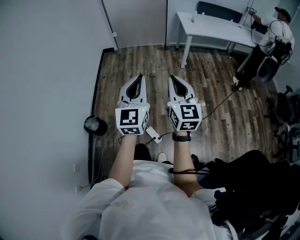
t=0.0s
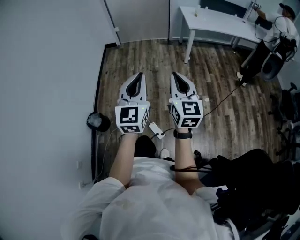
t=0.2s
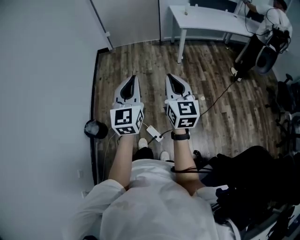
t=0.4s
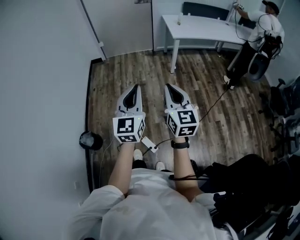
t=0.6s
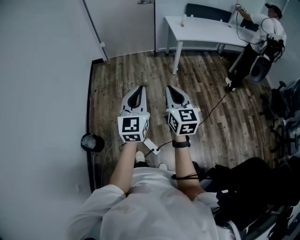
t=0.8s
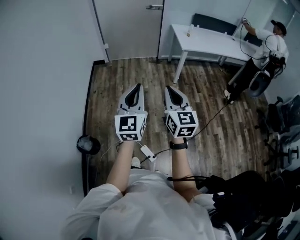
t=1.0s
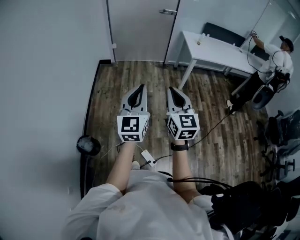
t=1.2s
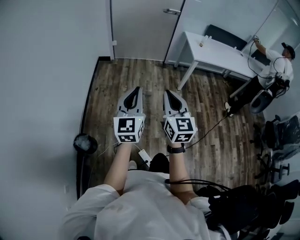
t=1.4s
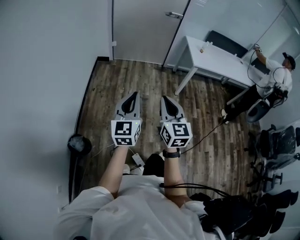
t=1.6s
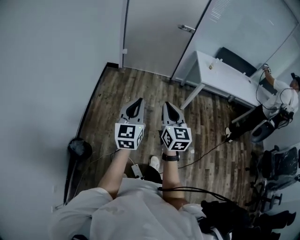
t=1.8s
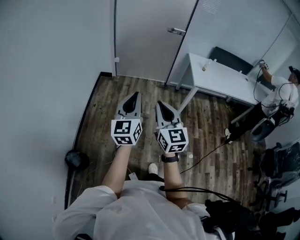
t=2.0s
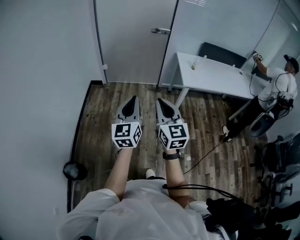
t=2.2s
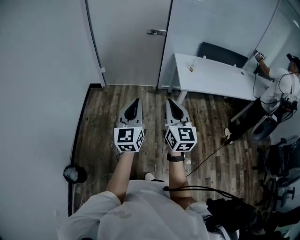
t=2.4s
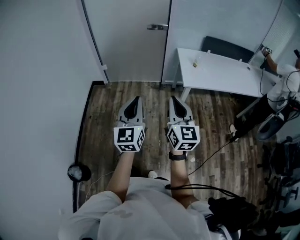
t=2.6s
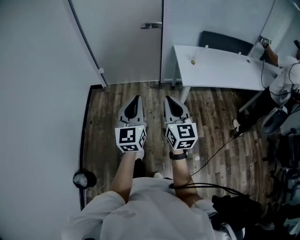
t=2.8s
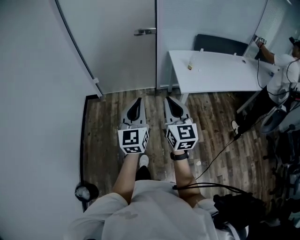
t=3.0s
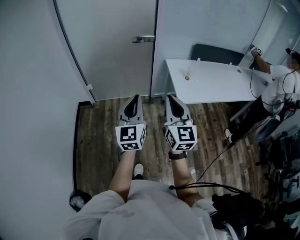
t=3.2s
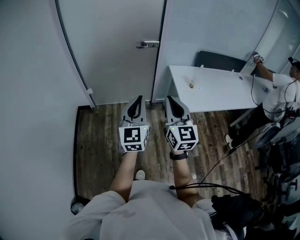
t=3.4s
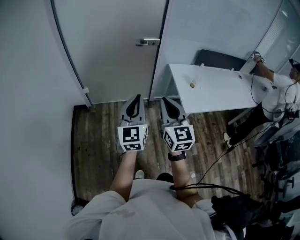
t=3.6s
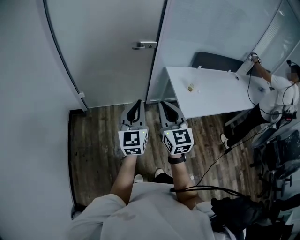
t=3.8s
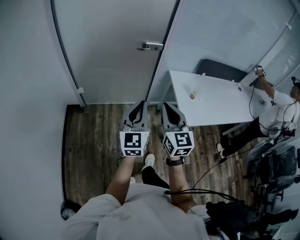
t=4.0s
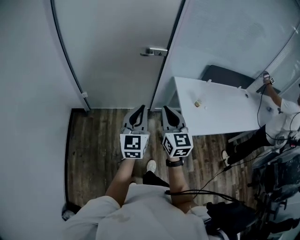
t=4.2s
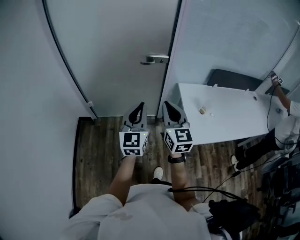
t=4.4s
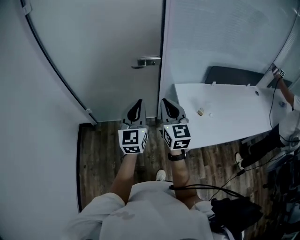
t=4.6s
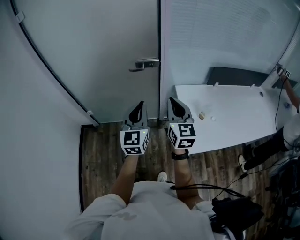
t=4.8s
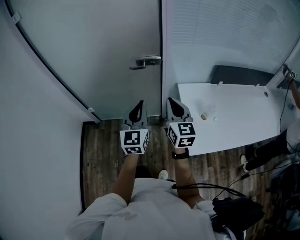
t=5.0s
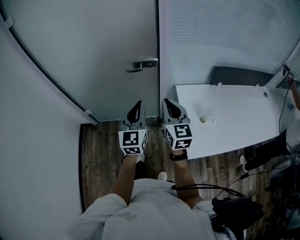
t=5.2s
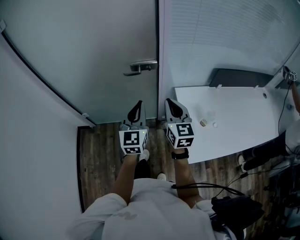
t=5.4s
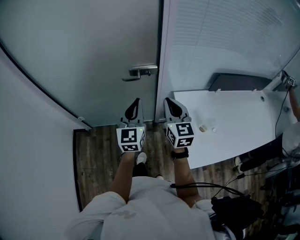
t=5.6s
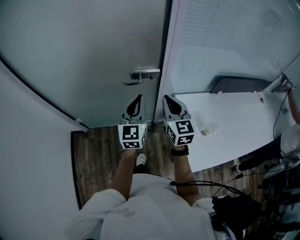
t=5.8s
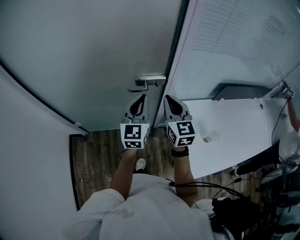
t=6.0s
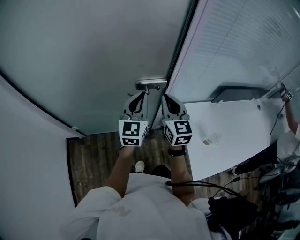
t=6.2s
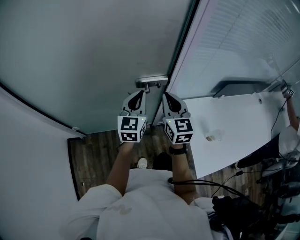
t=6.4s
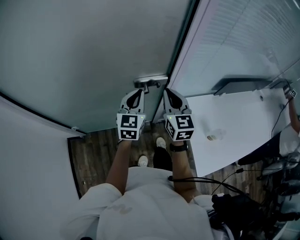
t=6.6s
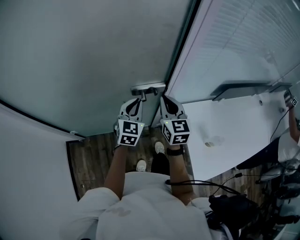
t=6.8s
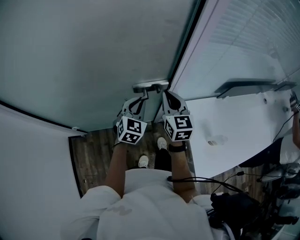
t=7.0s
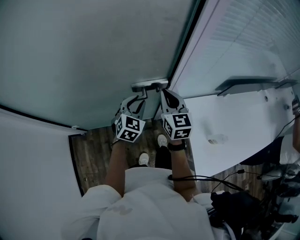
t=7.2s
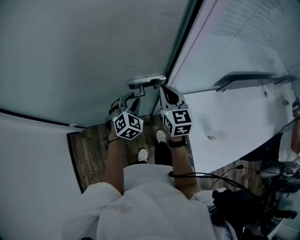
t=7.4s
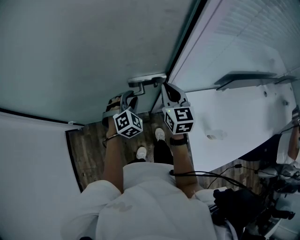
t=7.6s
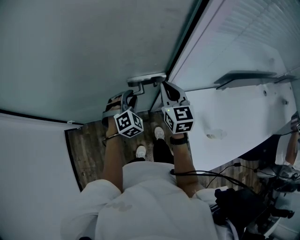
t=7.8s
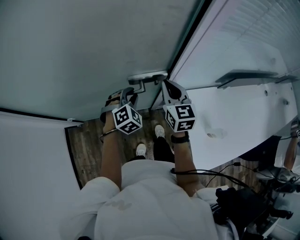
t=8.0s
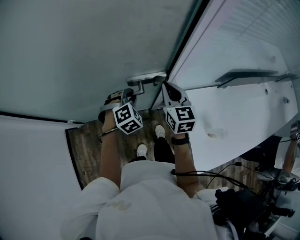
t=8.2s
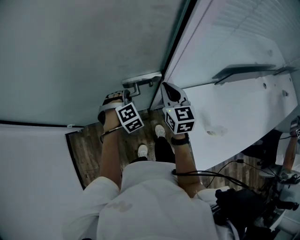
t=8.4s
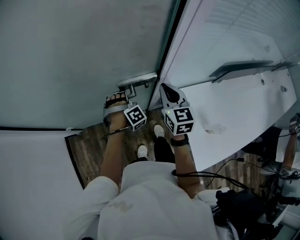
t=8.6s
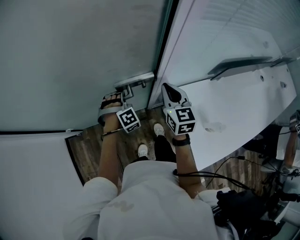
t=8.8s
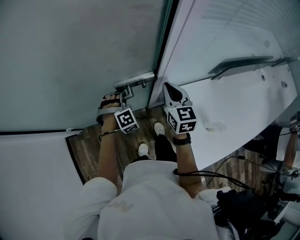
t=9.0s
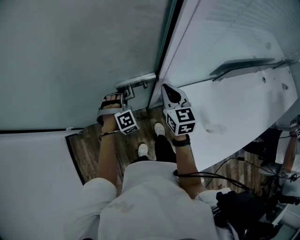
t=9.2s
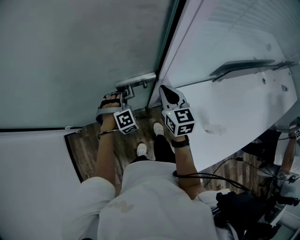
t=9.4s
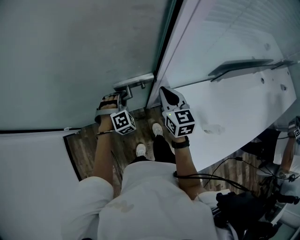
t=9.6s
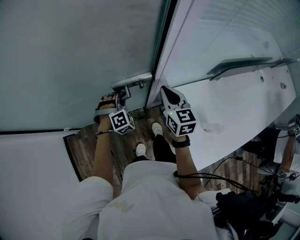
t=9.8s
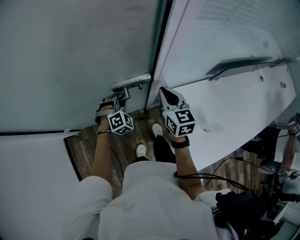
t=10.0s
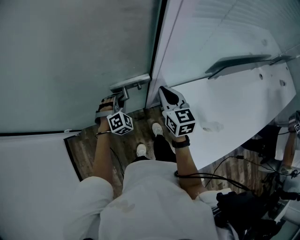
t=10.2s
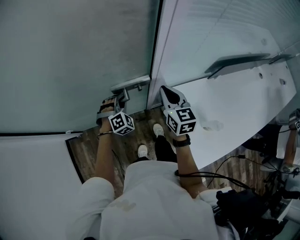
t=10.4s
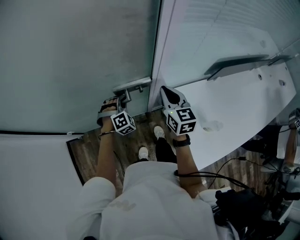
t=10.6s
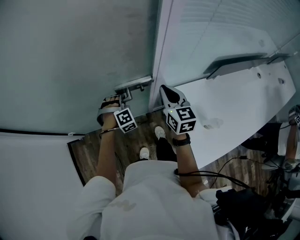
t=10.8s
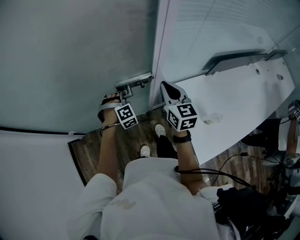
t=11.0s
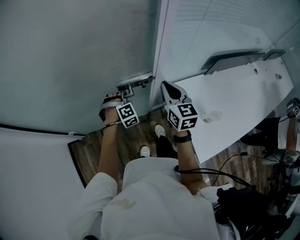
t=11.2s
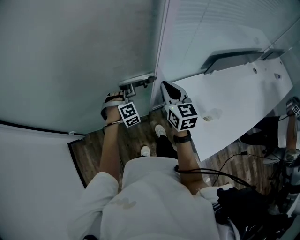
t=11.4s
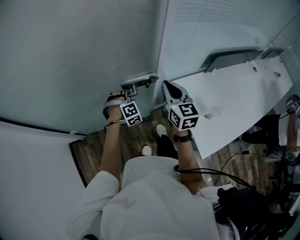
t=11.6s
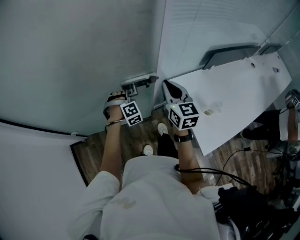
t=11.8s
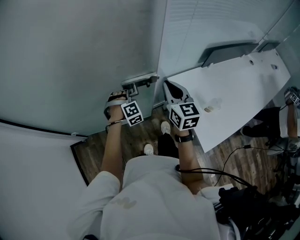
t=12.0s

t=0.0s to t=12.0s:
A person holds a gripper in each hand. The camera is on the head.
t=0.0s to t=1.6s: Both grippers travel together forward and to the left, roughly 30 cm.
t=1.6s to t=3.0s: Both grippers are carried forward and to the right, roughly 50 cm.
t=3.0s to t=4.4s: The two grippers travel together, forward, approximately 40 cm.
t=4.4s to t=6.0s: The grippers both shift forward by about 40 cm.
t=6.0s to t=7.6s: The left gripper moves downward and forward, about 25 cm, points its fingers approximately 40 degrees further downward, and opens its fingers. The right gripper heads forward and downward, covering some 15 cm.
t=7.6s to t=9.0s: The left gripper travels downward by some 5 cm, rotates roughly 30 degrees, and closes its fingers. Meanwhile the right gripper travels to the right by about 5 cm.
t=9.0s to t=10.4s: The grippers stay close to where they were, moving slightly.
t=10.4s to t=12.0s: The right gripper moves backward and upward, some 15 cm. Meanwhile the left gripper goes about 10 cm backward.

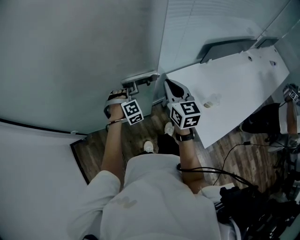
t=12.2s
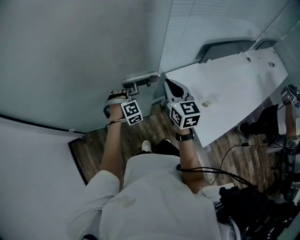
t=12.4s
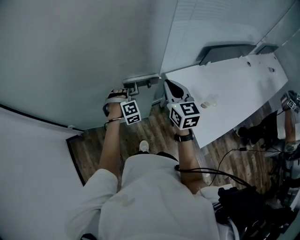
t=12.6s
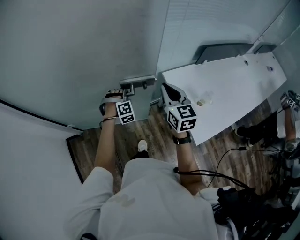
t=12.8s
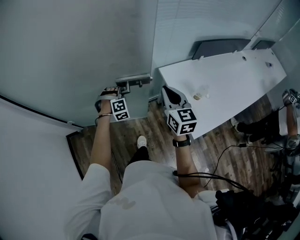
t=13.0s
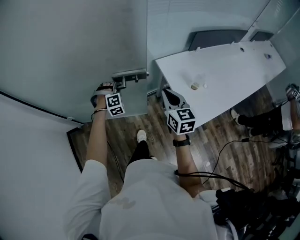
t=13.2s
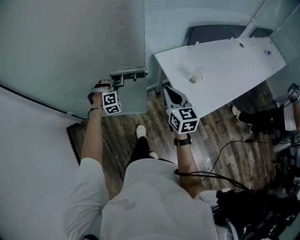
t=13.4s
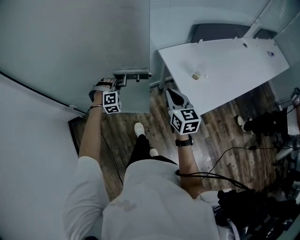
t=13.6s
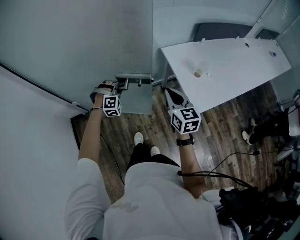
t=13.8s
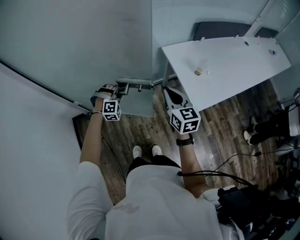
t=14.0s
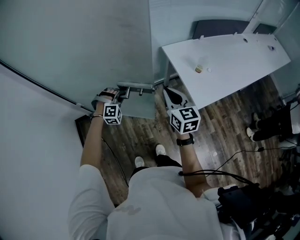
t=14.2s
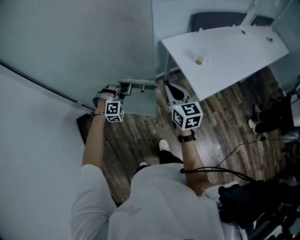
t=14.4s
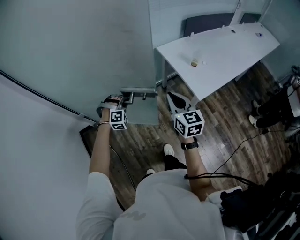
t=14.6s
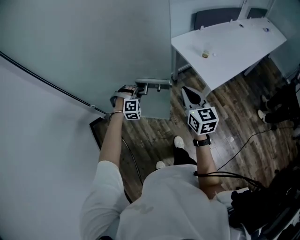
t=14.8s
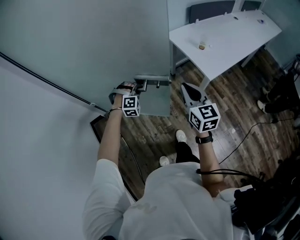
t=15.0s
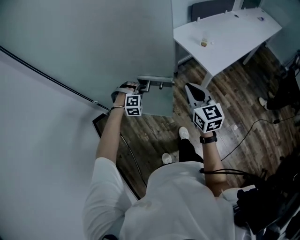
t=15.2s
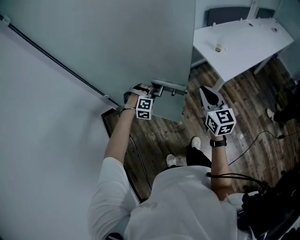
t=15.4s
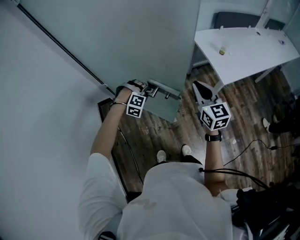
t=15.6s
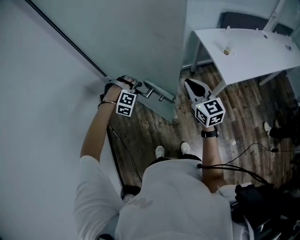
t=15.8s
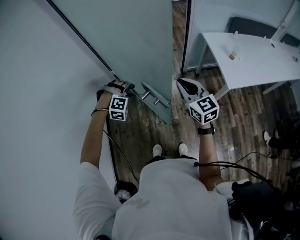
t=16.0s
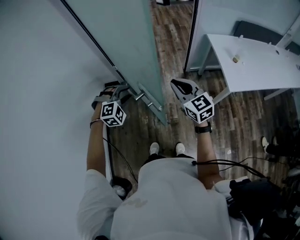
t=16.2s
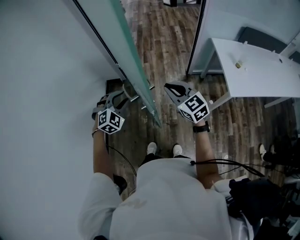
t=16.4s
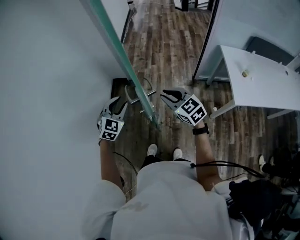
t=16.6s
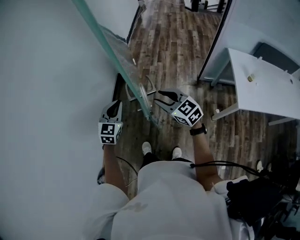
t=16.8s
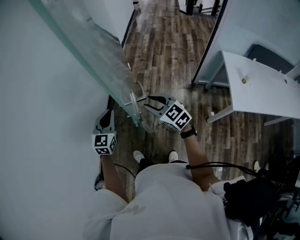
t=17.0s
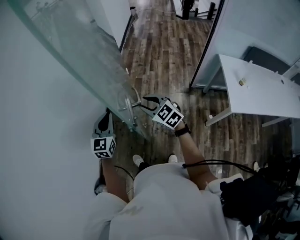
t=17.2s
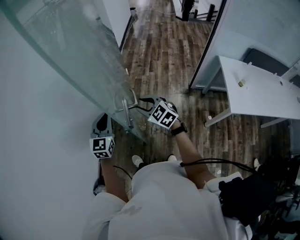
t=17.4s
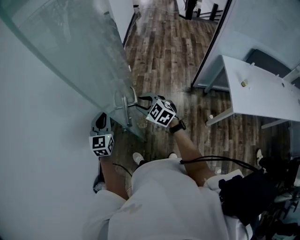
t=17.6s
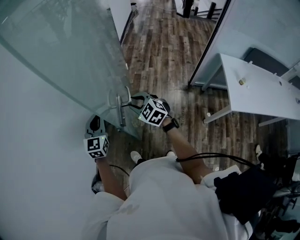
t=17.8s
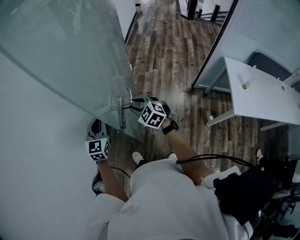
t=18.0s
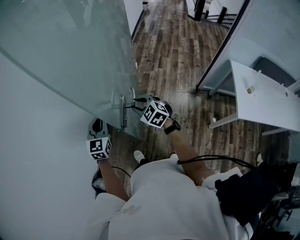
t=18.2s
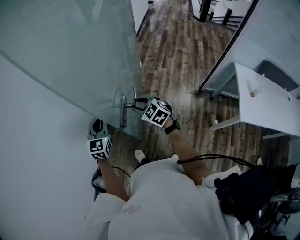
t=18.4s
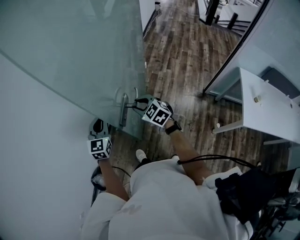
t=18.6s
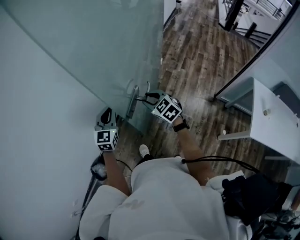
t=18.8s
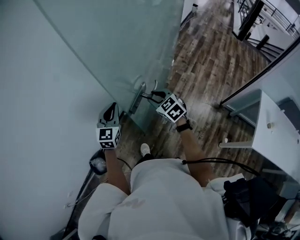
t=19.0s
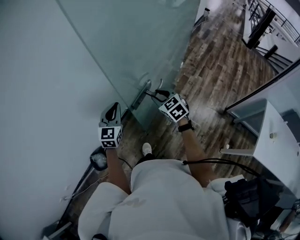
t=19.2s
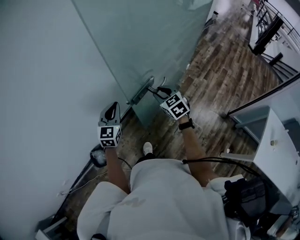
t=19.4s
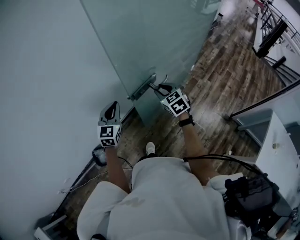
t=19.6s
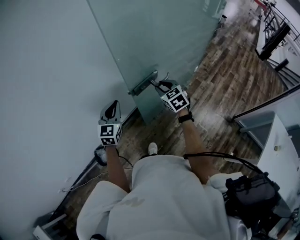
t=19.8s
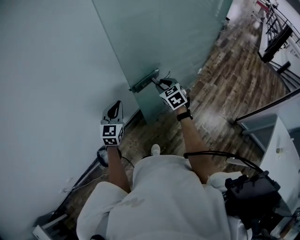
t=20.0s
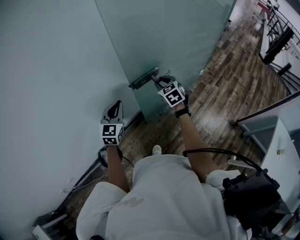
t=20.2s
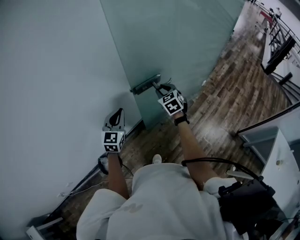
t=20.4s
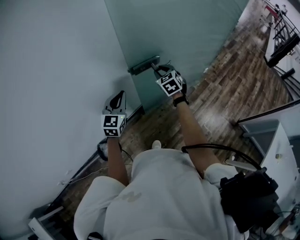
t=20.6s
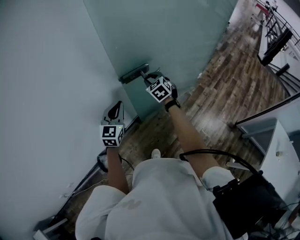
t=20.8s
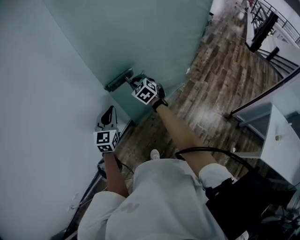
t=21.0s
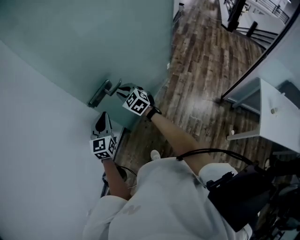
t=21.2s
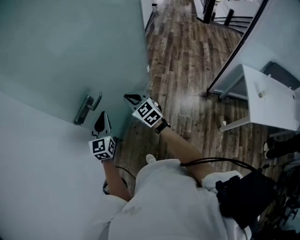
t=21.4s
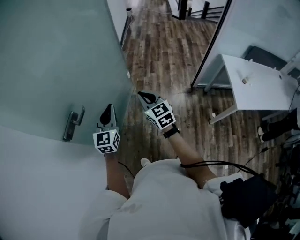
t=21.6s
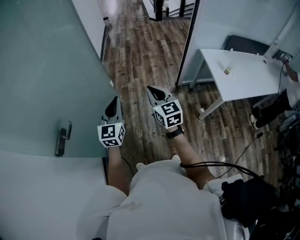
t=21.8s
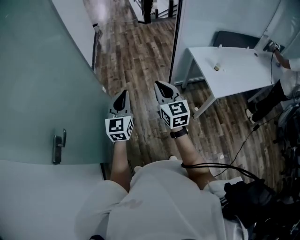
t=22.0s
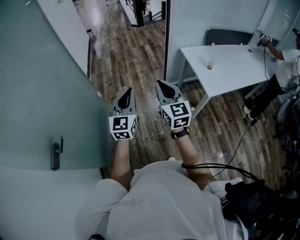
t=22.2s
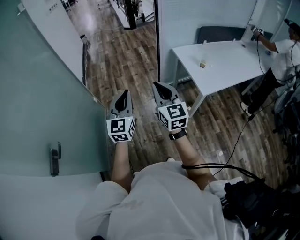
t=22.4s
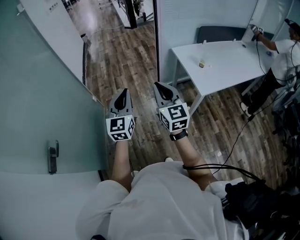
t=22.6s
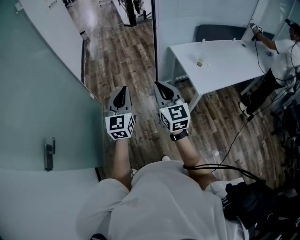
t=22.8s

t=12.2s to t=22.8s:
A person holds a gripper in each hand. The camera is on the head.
t=12.2s to t=13.8s: Both grippers travel together backward, roughly 25 cm.
t=13.8s to t=15.2s: The two grippers go roughly 20 cm backward.
t=15.2s to t=16.8s: The left gripper moves about 40 cm, rolls counterclockwise, seen from behind, by about 90 degrees, and opens, then closes once more. Meanwhile the right gripper moves about 25 cm, changes its angle by approximately 70 degrees, and opens up.
t=16.8s to t=18.2s: The left gripper goes approximately 15 cm to the left. The right gripper shifts roughly 20 cm to the left and forward, and turns by approximately 20 degrees.
t=18.2s to t=19.8s: The left gripper moves to the left, roughly 25 cm, and rotates about 20 degrees, while the right gripper heads to the left and forward, covering about 20 cm.
t=19.8s to t=21.2s: The left gripper shifts roughly 5 cm to the right. The right gripper goes about 5 cm forward.
t=21.2s to t=22.8s: The two grippers travel together, about 60 cm. The left gripper changes its angle by approximately 50 degrees; the right gripper rotates some 70 degrees.

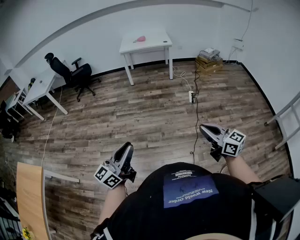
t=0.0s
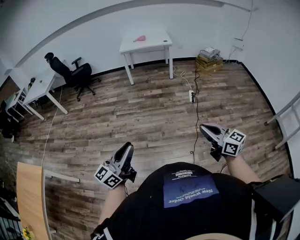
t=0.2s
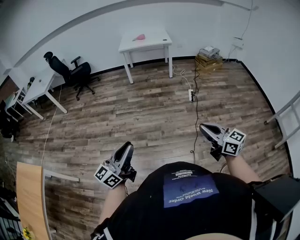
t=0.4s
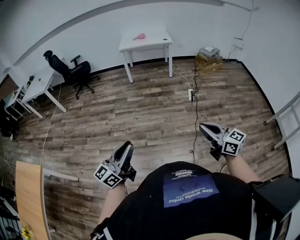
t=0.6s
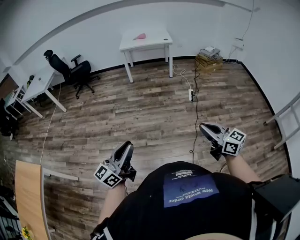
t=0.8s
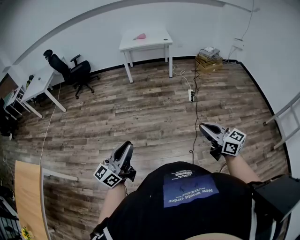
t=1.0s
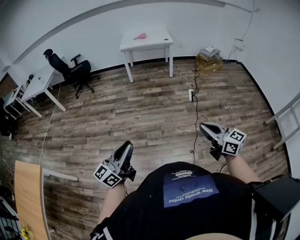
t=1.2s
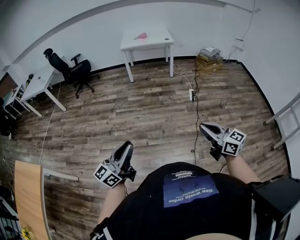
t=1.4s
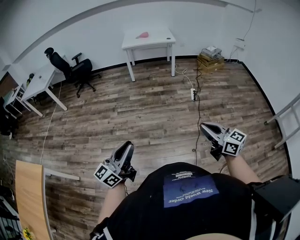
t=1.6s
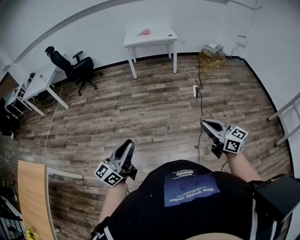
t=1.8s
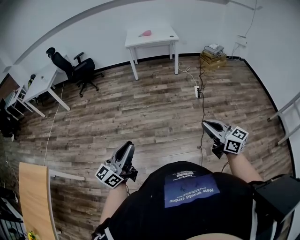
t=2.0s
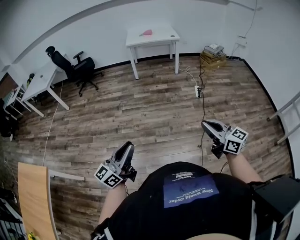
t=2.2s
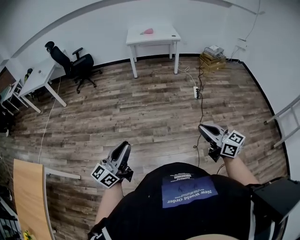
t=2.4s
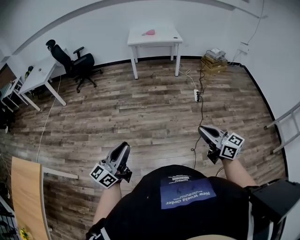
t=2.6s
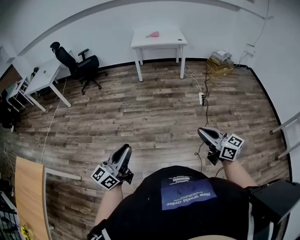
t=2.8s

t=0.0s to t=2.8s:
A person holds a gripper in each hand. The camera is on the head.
t=0.0s to t=1.4s: There are only small adjustments of the grippers.
t=1.4s to t=2.8s: Both grippers travel together to the left and forward, roughly 10 cm.
